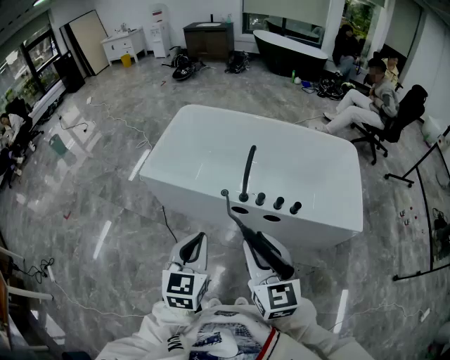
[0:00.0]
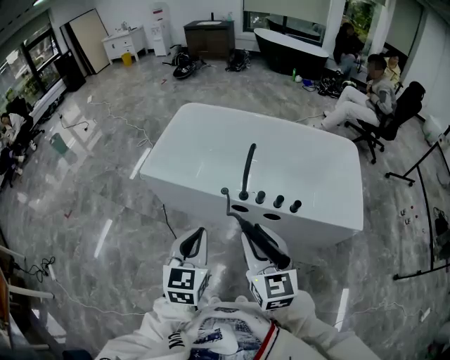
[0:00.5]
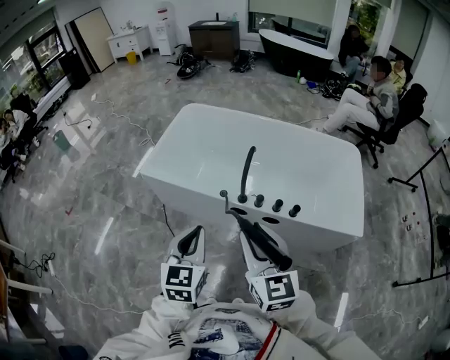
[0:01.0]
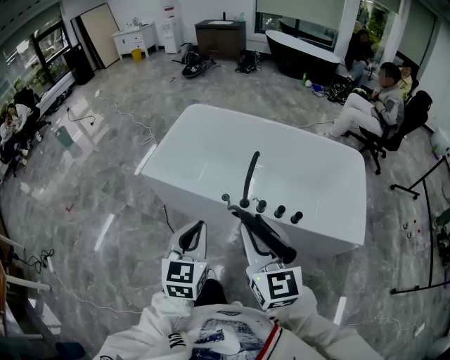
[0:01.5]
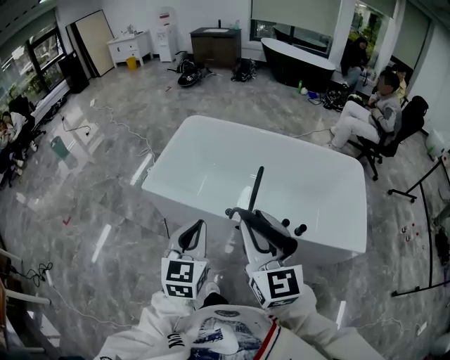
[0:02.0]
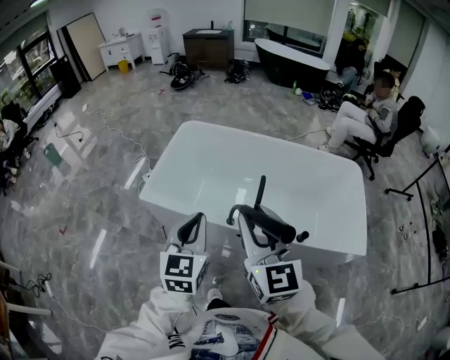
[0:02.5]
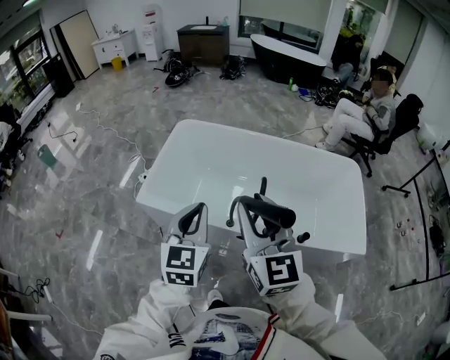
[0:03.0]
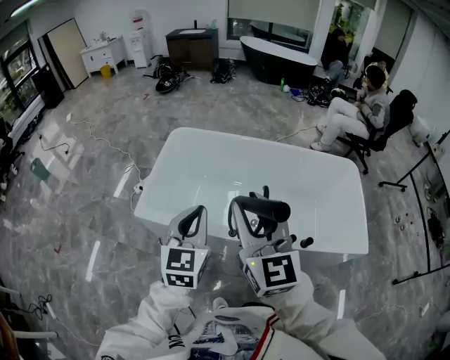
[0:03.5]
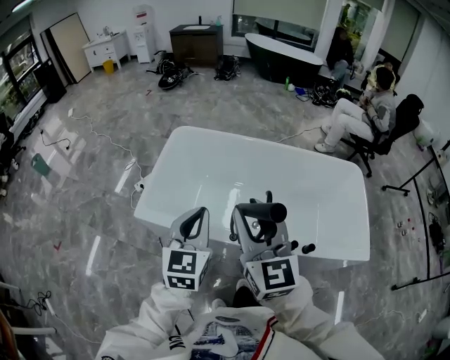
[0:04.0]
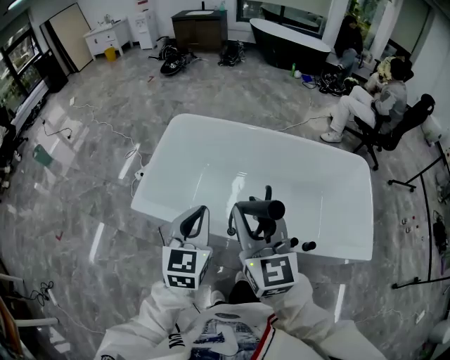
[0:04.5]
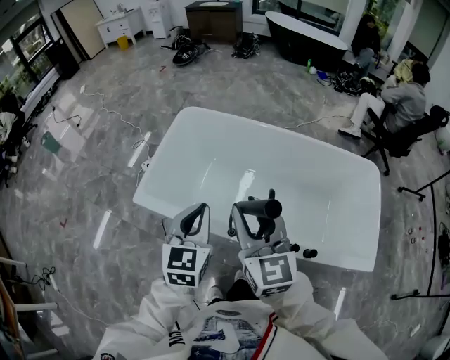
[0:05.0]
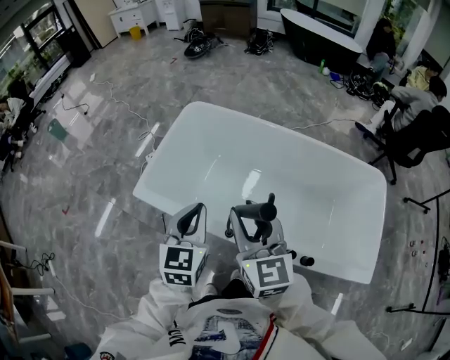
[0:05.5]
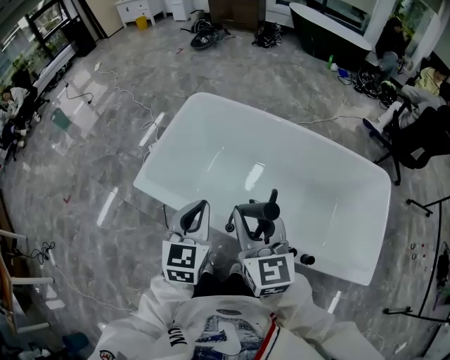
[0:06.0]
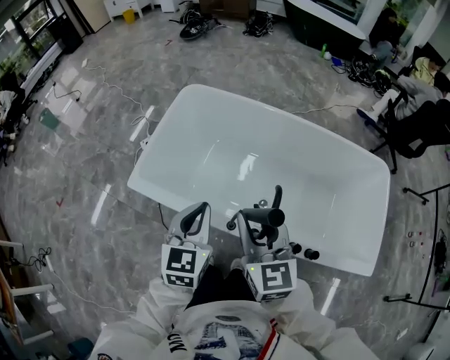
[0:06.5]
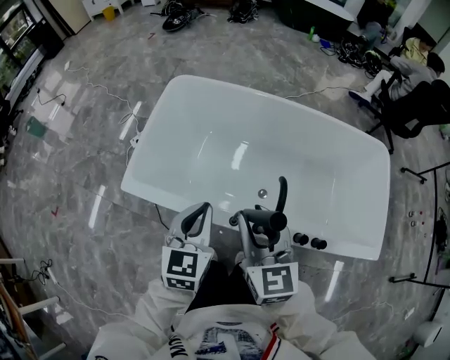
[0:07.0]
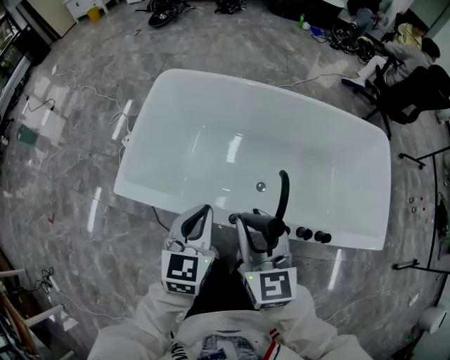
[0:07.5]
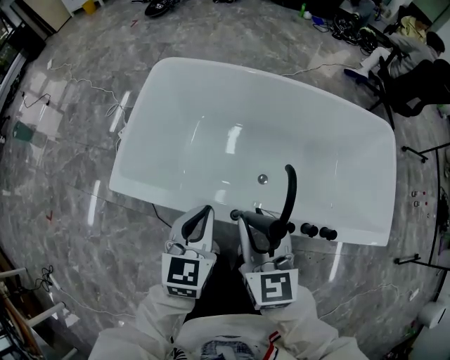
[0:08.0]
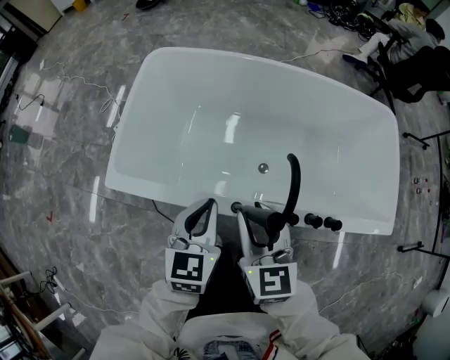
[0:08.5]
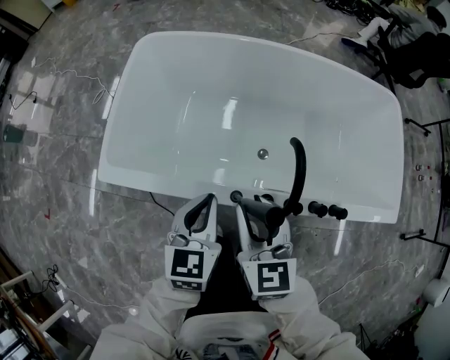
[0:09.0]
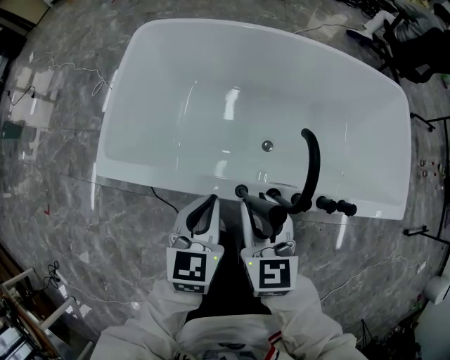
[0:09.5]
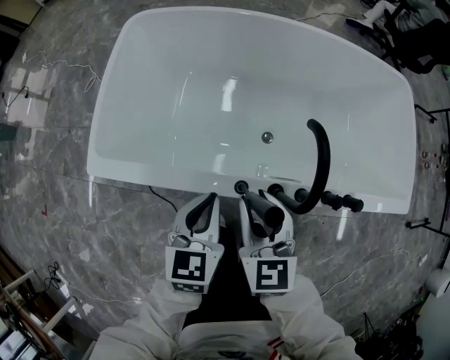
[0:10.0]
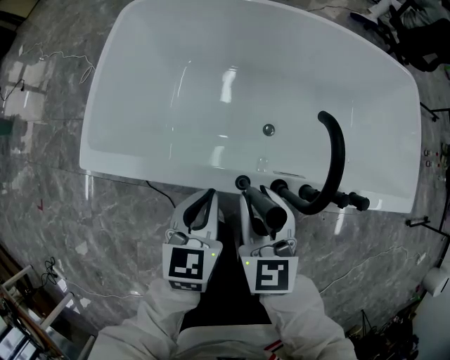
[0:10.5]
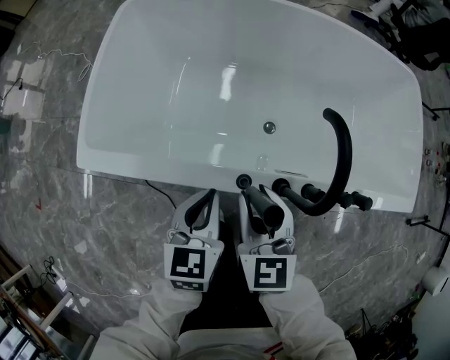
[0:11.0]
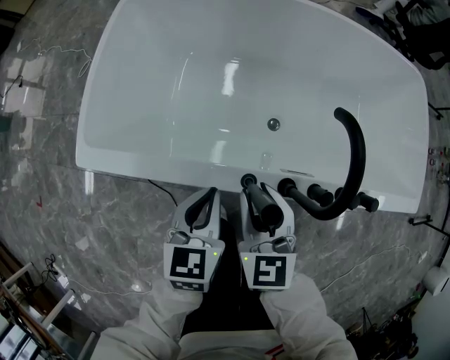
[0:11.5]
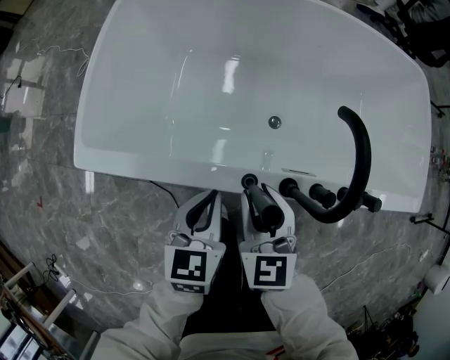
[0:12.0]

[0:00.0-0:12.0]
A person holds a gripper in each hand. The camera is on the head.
0:00.0 to 0:02.0: The right gripper is displaced forward and upward by approximately 15 cm. Meanwhile the left gripper moves forward, about 10 cm.
0:02.0 to 0:04.0: The right gripper heads forward and to the left, covering about 20 cm, while the left gripper is displaced forward by approximately 20 cm.
0:04.0 to 0:06.0: The left gripper goes about 10 cm downward, to the right and forward. Meanwhile the right gripper moves downward, forward and to the right, some 15 cm.
0:06.0 to 0:08.0: Both grippers move downward, some 10 cm.
0:08.0 to 0:10.0: The grippers both shift downward by approximately 15 cm.
0:10.0 to 0:12.0: The grippers both shift downward by some 10 cm.

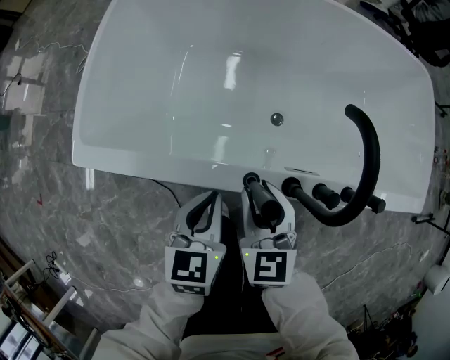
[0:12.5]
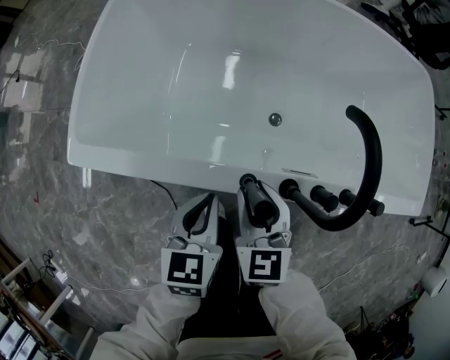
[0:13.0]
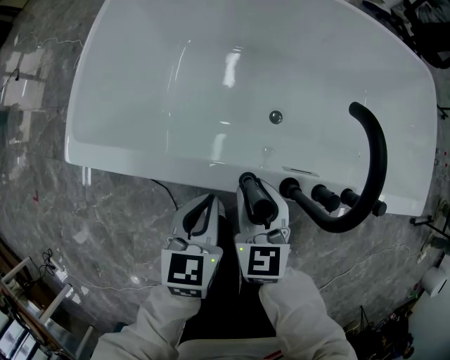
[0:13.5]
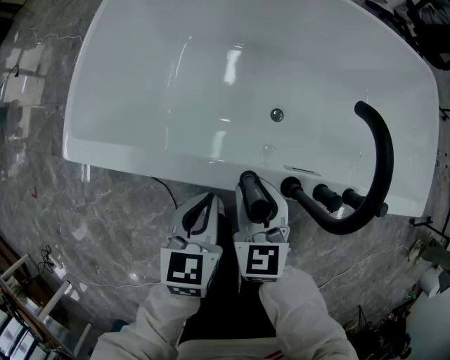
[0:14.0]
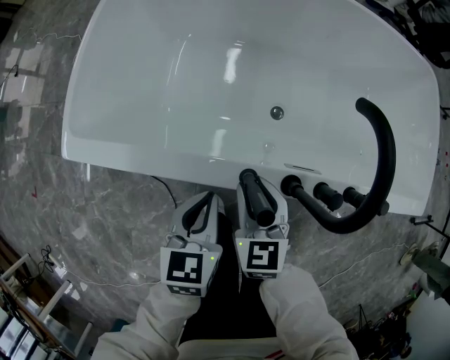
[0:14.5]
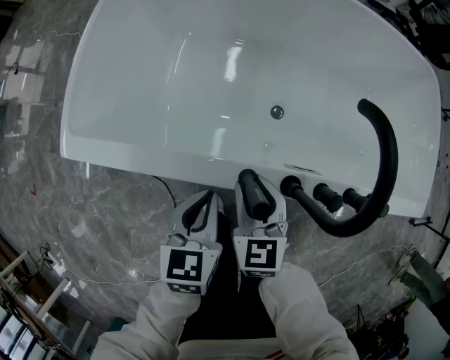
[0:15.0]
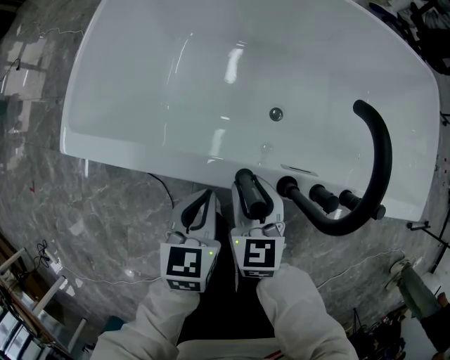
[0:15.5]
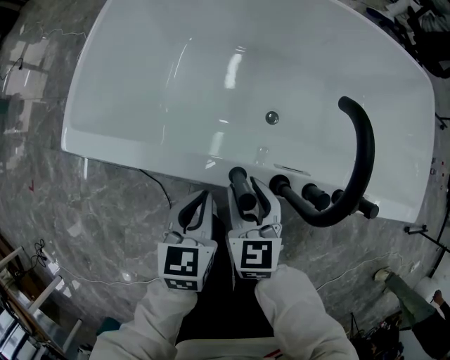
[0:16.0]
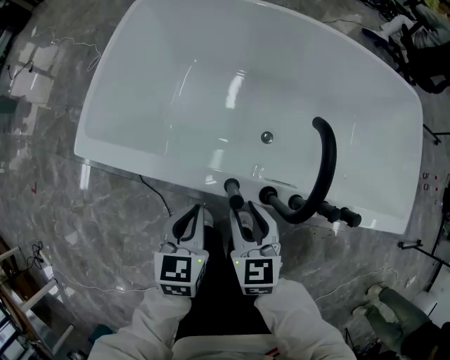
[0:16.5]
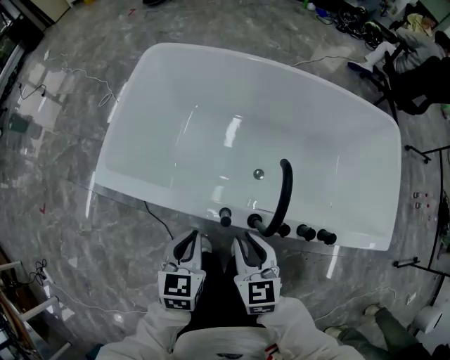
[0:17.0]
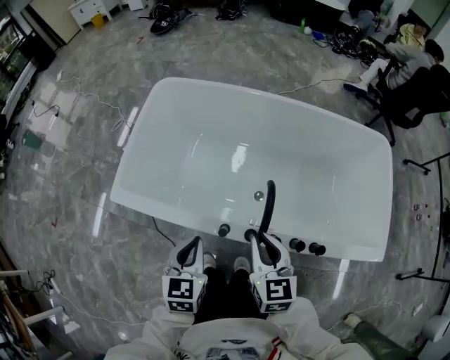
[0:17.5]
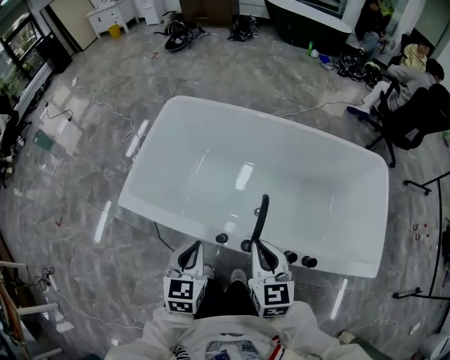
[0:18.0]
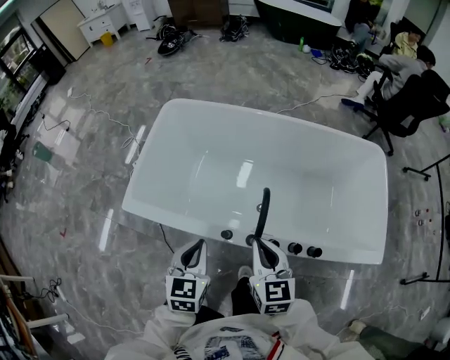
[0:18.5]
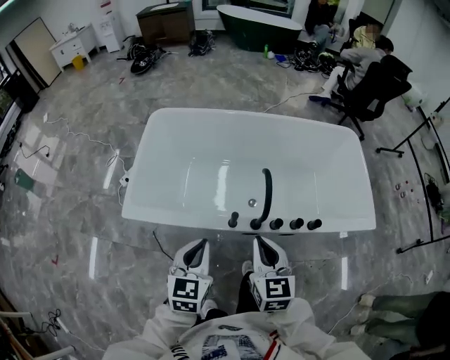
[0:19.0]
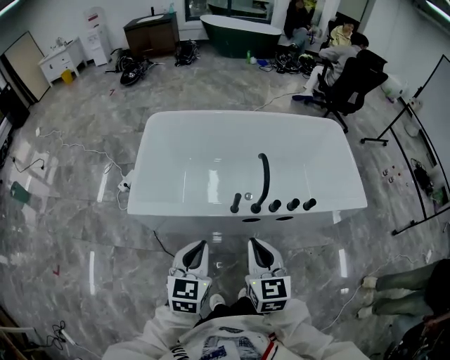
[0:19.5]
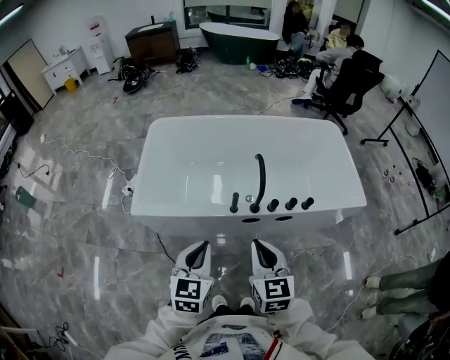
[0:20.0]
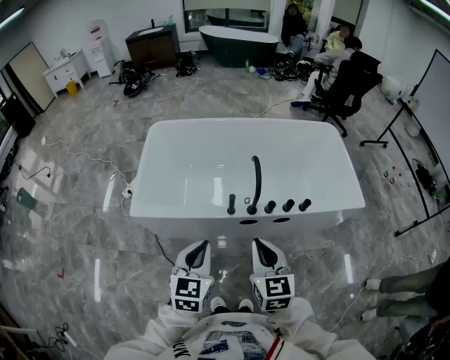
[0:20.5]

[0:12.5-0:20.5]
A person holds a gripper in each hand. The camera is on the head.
0:12.5 to 0:14.5: The right gripper moves downward, some 5 cm.
0:14.5 to 0:16.5: The right gripper goes some 5 cm upward.
0:16.5 to 0:18.5: Both grippers move upward, roughly 25 cm. The right gripper closes up.
0:18.5 to 0:20.5: The right gripper goes approximately 25 cm backward. The left gripper heads backward and upward, covering some 20 cm, and swivels about 20 degrees.

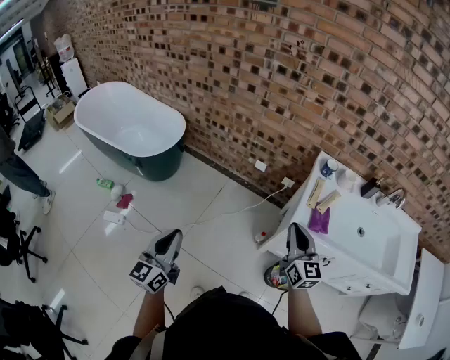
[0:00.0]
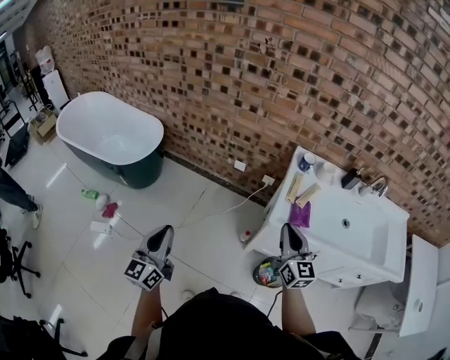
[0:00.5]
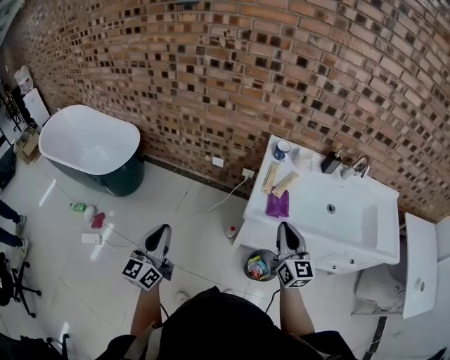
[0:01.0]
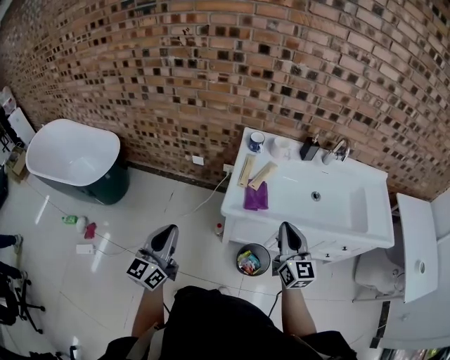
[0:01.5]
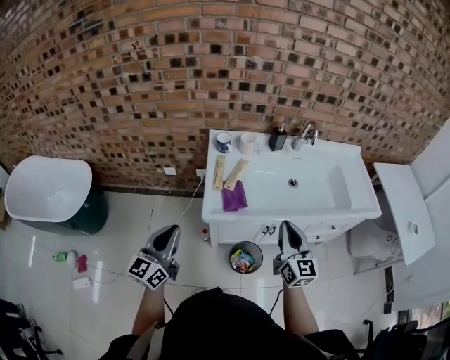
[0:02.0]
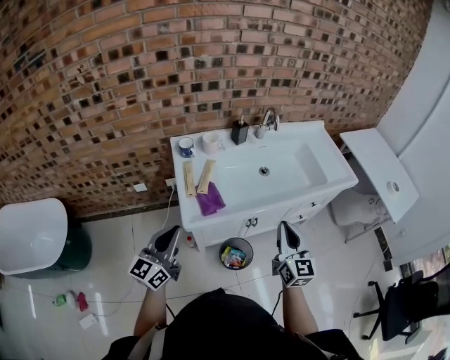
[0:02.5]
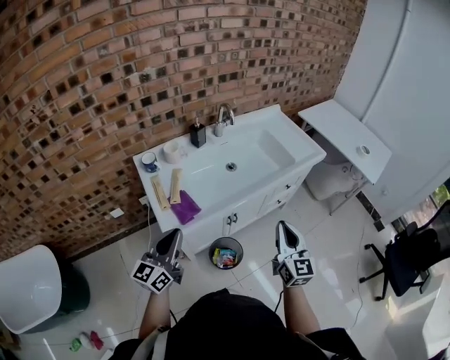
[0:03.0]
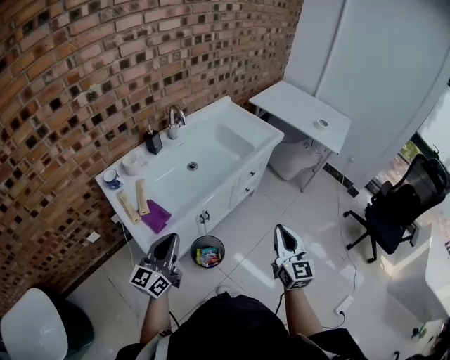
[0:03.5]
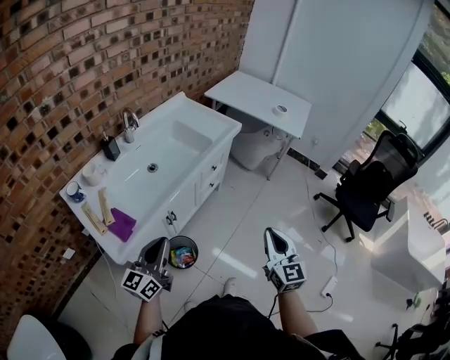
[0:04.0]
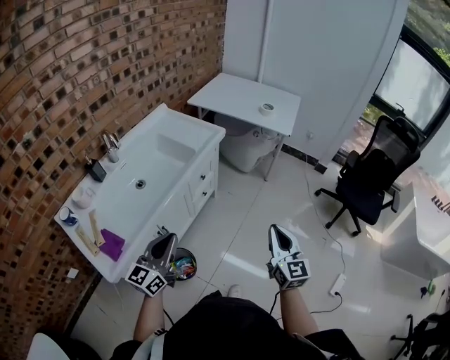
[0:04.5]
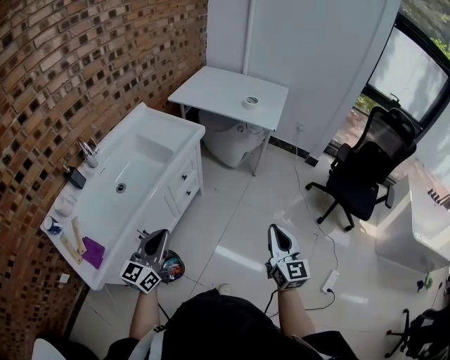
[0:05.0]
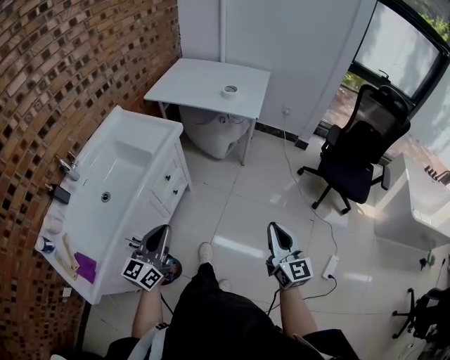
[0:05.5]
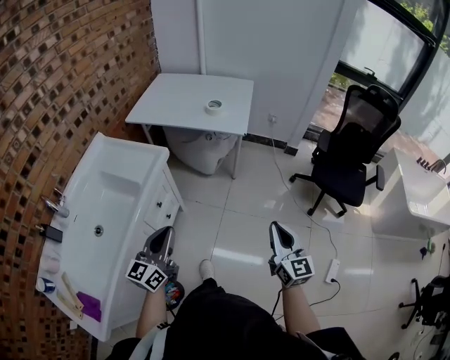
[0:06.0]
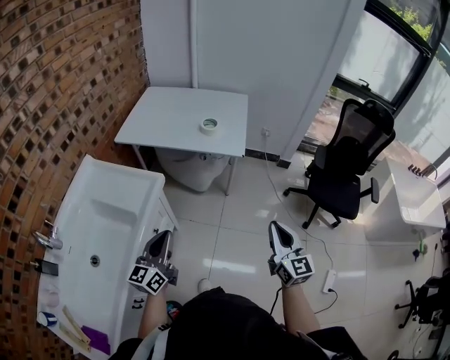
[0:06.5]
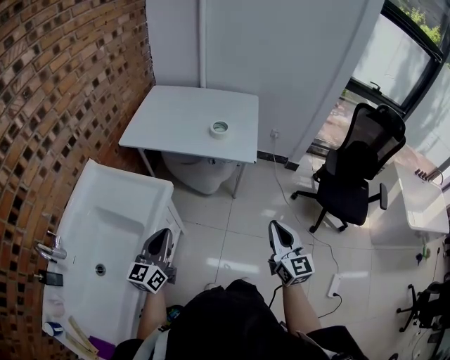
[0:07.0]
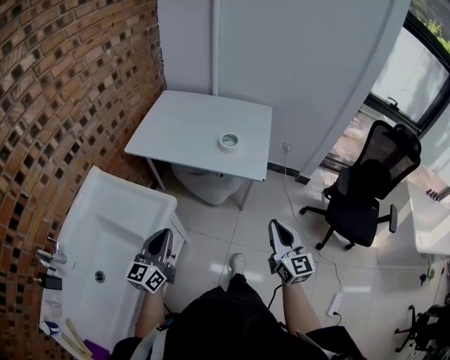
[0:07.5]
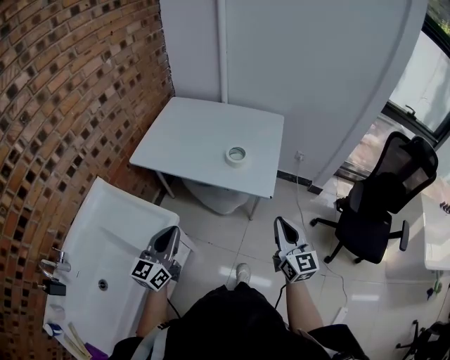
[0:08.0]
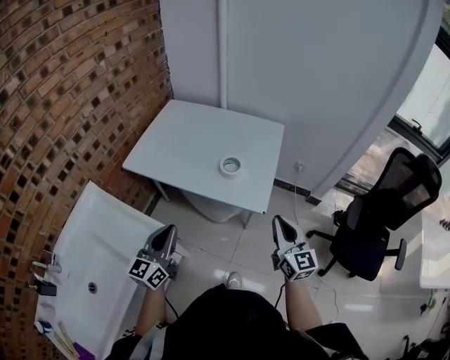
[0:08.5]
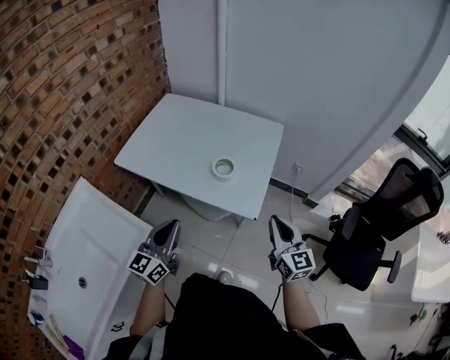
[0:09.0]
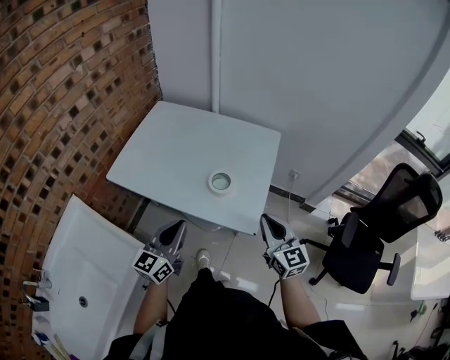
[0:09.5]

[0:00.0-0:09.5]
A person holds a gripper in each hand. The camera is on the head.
0:00.0 to 0:02.0: The right gripper shifts by some 30 cm, and turns by approximately 30 degrees; the left gripper moves about 30 cm, and changes its angle by some 30 degrees.
0:02.0 to 0:04.0: The right gripper ends up roughly 30 cm from where it was, and turns by approximately 50 degrees, while the left gripper moves about 25 cm, and swivels about 50 degrees.
0:04.0 to 0:05.5: The left gripper heads forward and to the right, covering some 30 cm; the right gripper goes about 25 cm to the right and forward.
0:05.5 to 0:07.5: Both grippers travel together forward, roughly 35 cm.
0:07.5 to 0:09.5: The right gripper travels forward by some 30 cm. The left gripper goes approximately 30 cm forward and to the right.
